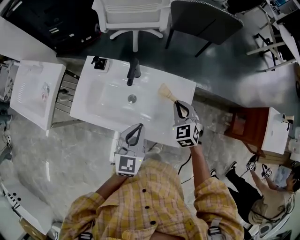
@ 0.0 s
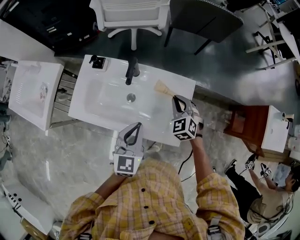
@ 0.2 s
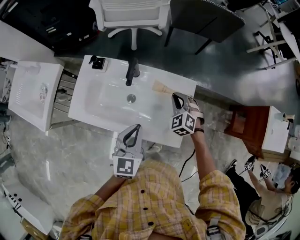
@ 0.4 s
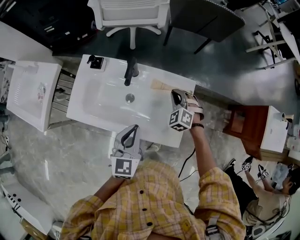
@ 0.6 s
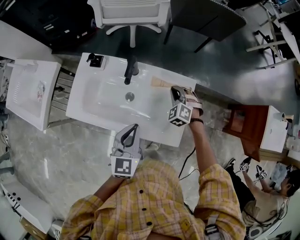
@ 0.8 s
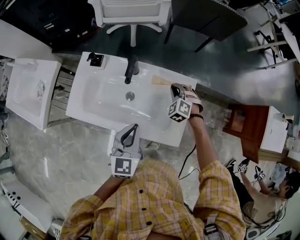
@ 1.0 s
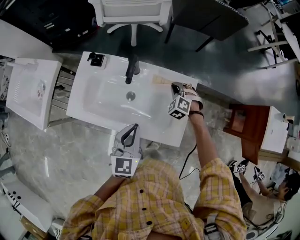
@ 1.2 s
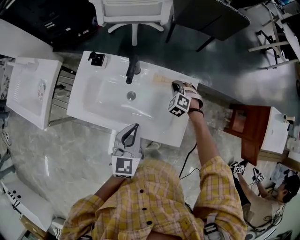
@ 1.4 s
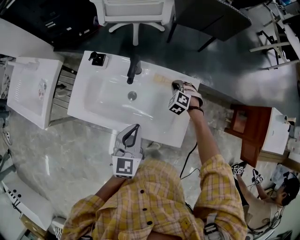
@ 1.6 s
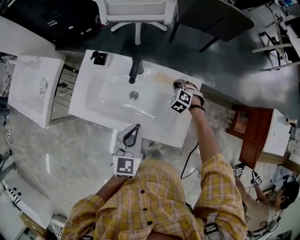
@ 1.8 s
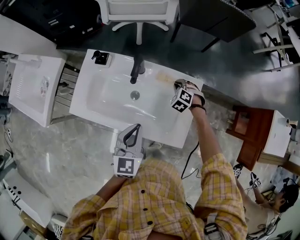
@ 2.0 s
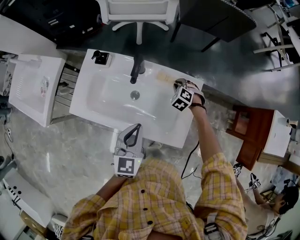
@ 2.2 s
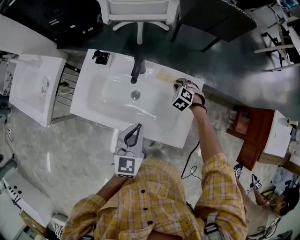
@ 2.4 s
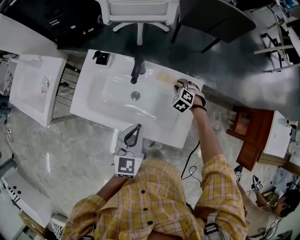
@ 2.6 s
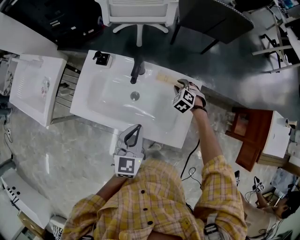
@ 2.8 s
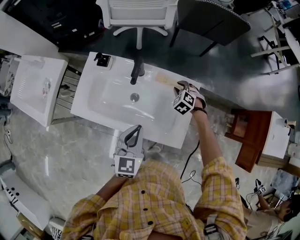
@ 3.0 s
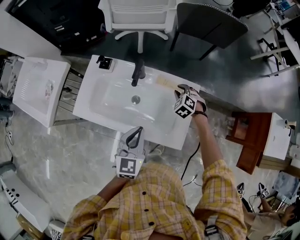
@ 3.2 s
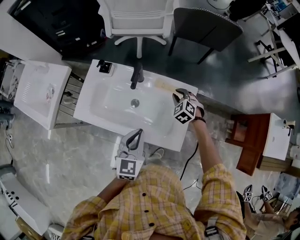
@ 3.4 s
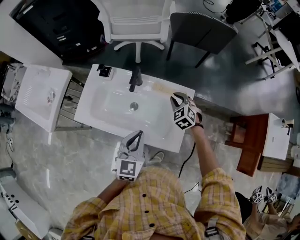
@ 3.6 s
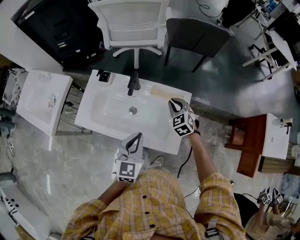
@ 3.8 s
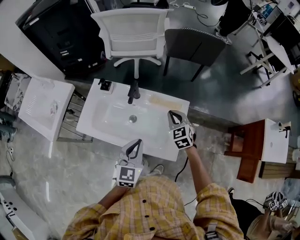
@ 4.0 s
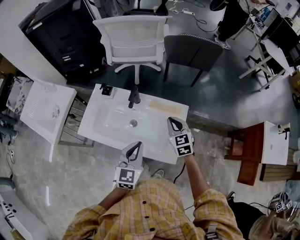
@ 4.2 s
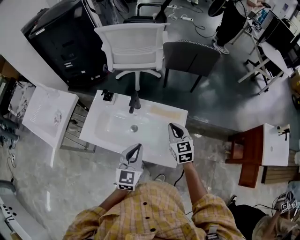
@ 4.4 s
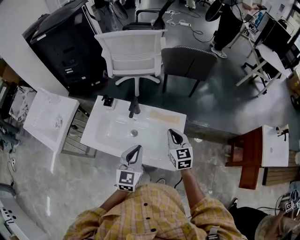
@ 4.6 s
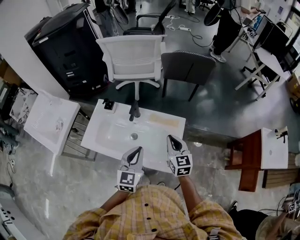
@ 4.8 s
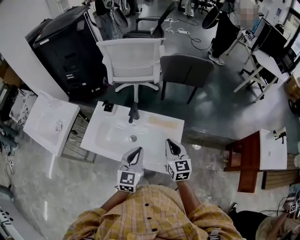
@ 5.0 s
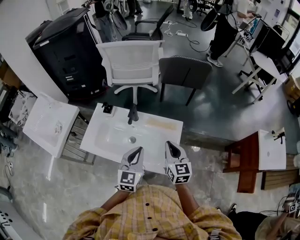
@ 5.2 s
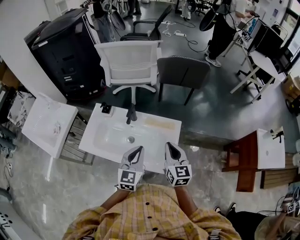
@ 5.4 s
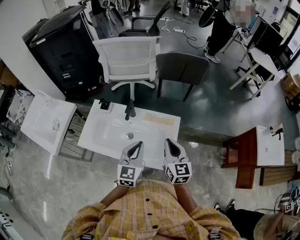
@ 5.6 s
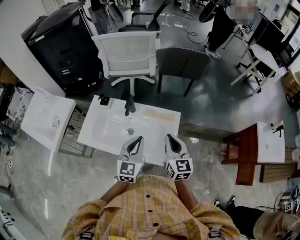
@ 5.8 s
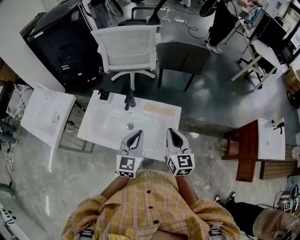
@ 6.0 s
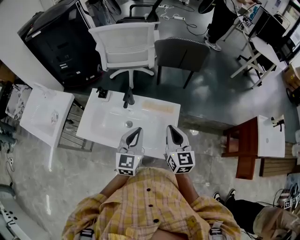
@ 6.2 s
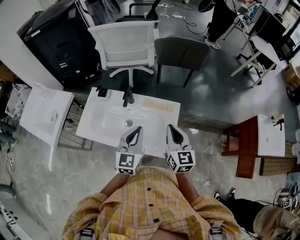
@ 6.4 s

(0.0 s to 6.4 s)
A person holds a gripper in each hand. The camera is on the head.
0.0 s - 1.6 s: The right gripper shifts some 20 cm downward and forward, and swivels roughly 40 degrees.
1.6 s - 3.2 s: The grippers make only small movements.
3.2 s - 4.8 s: The left gripper goes approximately 5 cm upward. The right gripper moves upward and backward, about 25 cm, tilts its fingers some 40 degrees upward, and closes its fingers.
4.8 s - 6.4 s: The right gripper shifts about 5 cm upward.

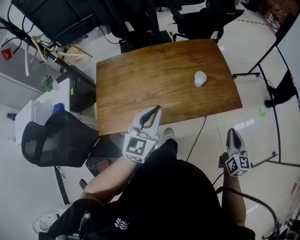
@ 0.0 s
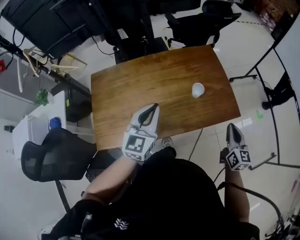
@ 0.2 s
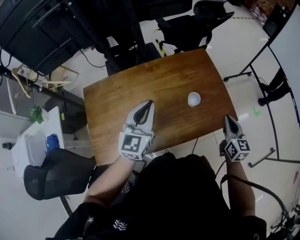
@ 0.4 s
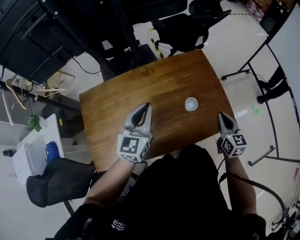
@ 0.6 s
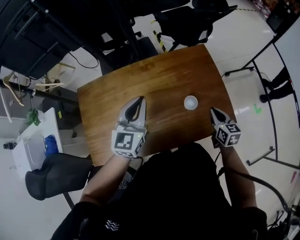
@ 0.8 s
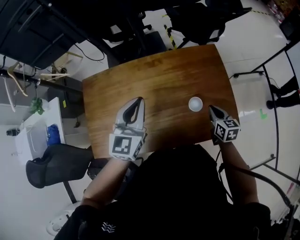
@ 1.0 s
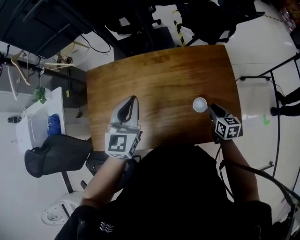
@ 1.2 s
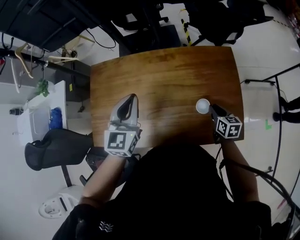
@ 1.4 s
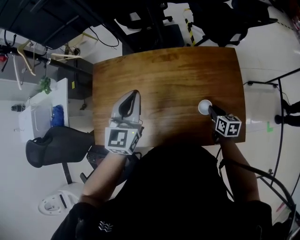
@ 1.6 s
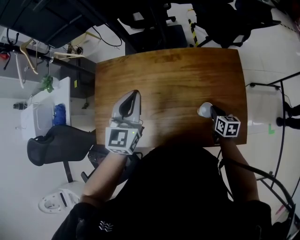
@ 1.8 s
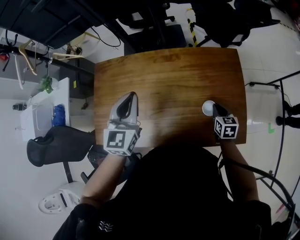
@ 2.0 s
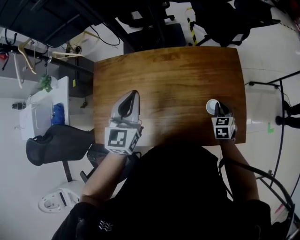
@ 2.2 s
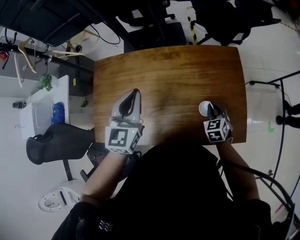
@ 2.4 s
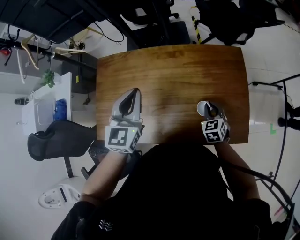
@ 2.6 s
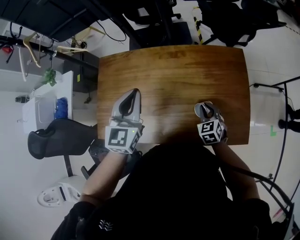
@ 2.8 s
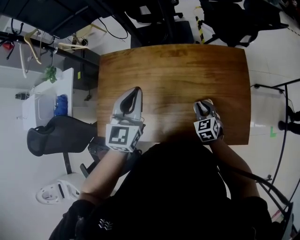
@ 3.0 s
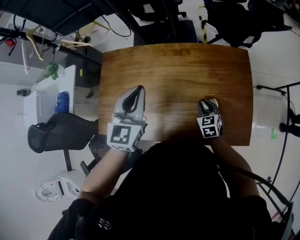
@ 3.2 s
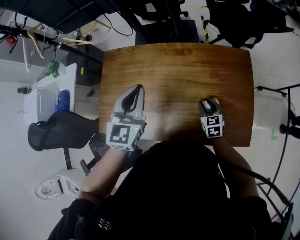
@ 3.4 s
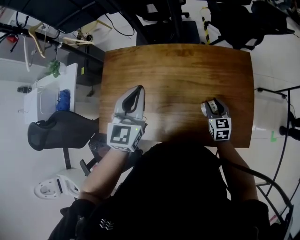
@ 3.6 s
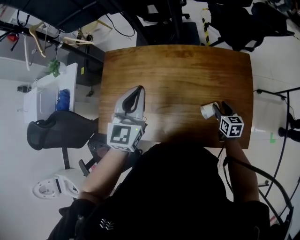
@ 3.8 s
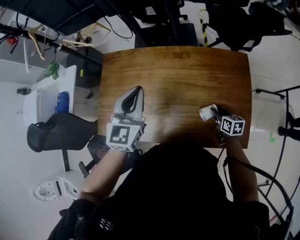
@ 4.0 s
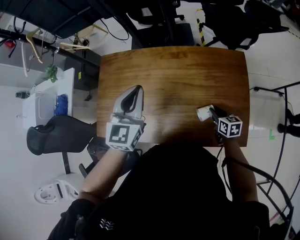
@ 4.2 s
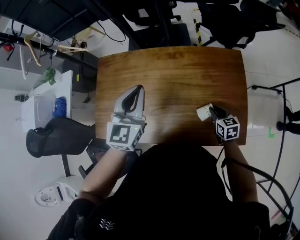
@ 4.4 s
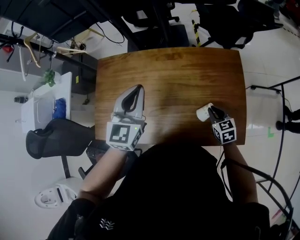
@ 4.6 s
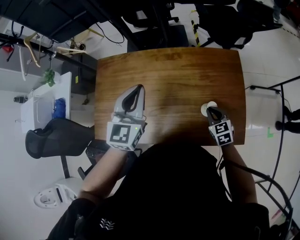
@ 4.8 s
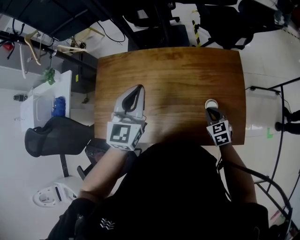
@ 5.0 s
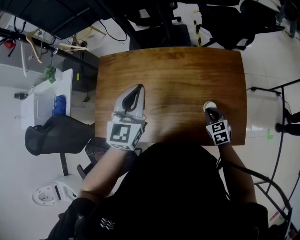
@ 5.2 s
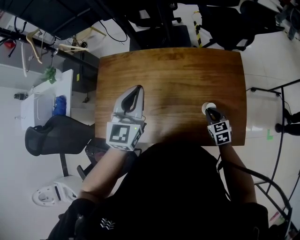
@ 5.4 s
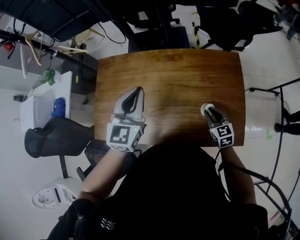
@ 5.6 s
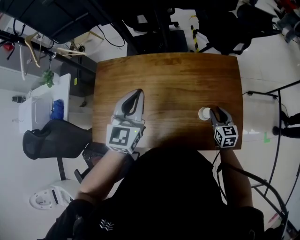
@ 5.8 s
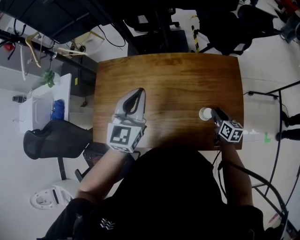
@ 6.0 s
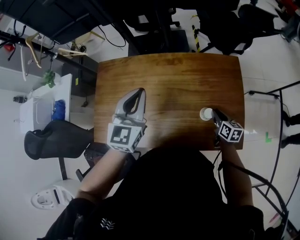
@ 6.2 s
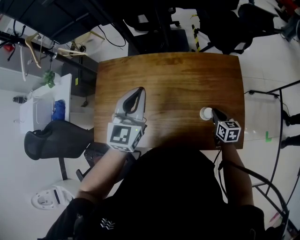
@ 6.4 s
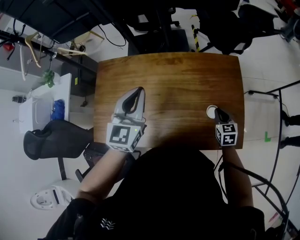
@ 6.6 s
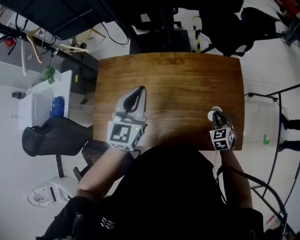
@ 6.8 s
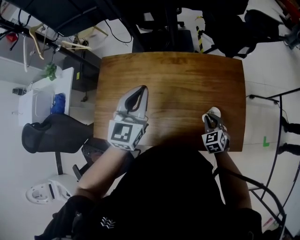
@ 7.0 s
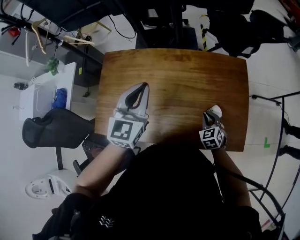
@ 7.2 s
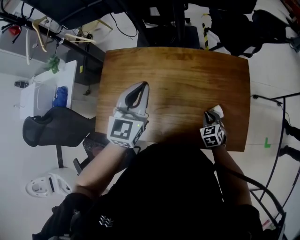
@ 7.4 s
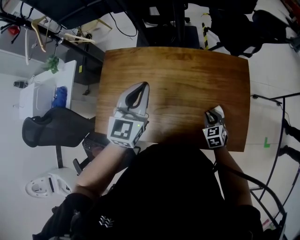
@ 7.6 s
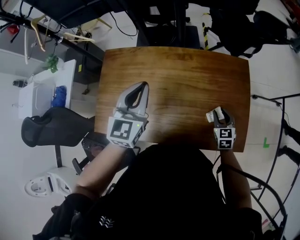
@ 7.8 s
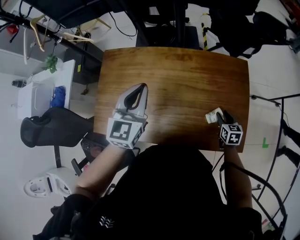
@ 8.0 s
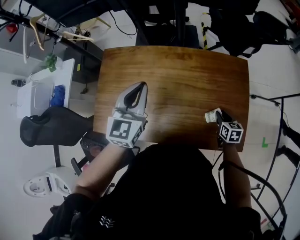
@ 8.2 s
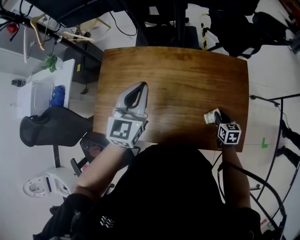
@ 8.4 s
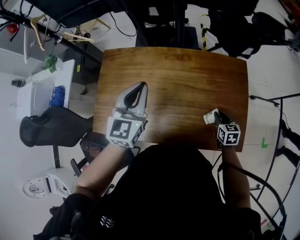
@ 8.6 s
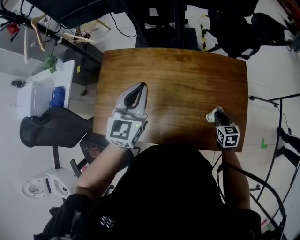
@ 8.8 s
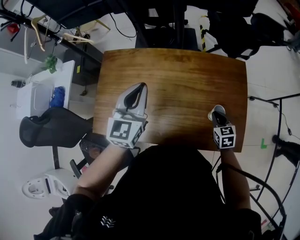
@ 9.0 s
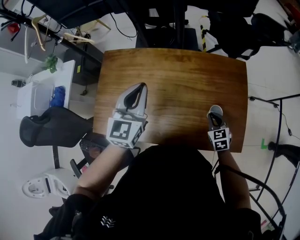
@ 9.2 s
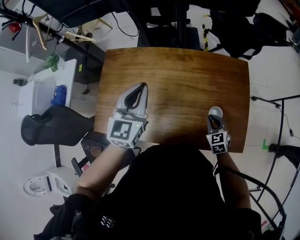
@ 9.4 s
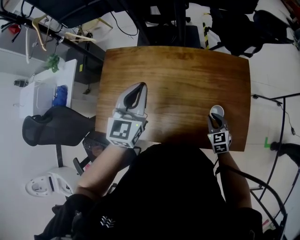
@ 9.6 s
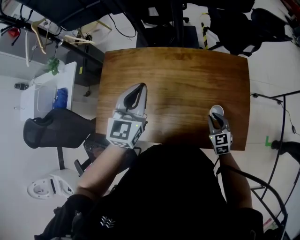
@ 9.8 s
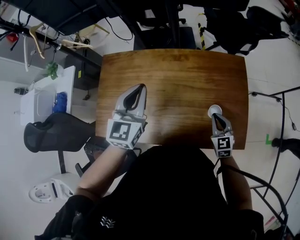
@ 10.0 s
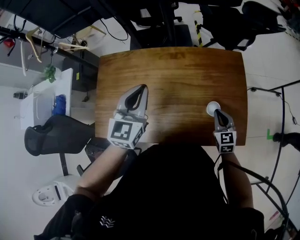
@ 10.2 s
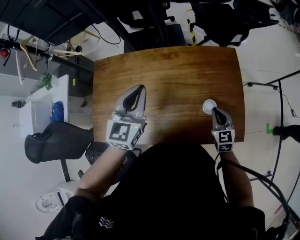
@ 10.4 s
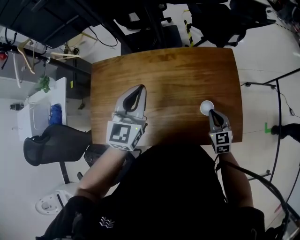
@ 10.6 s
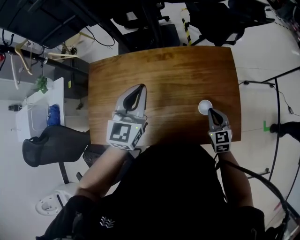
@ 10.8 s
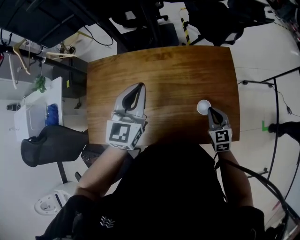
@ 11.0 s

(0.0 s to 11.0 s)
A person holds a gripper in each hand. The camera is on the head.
0.0 s - 1.6 s: The right gripper changes place by approximately 35 cm, and turns by some 40 degrees, while the left gripper ends up roughly 20 cm from where it was, and turns by about 20 degrees.
1.6 s - 3.2 s: The right gripper is displaced to the left by about 10 cm, and turns by roughly 30 degrees.
3.2 s - 4.8 s: The right gripper goes about 5 cm to the right, and opens, then closes again.
4.8 s - 6.2 s: The right gripper shifts approximately 5 cm to the right, and rotates about 40 degrees.
6.2 s - 7.8 s: The right gripper reaches roughly 10 cm to the left, then returns, and rotates approximately 40 degrees.
7.8 s - 9.4 s: The right gripper changes place by approximately 5 cm, and closes.
9.4 s - 11.0 s: The right gripper is displaced upward by about 5 cm, while the left gripper shifts approximately 5 cm to the right.

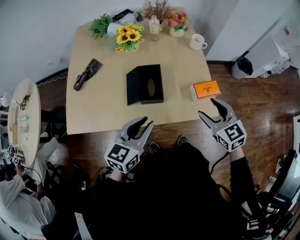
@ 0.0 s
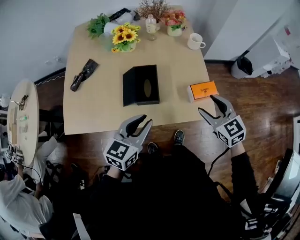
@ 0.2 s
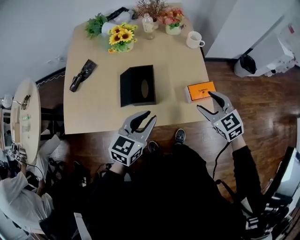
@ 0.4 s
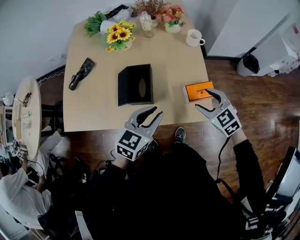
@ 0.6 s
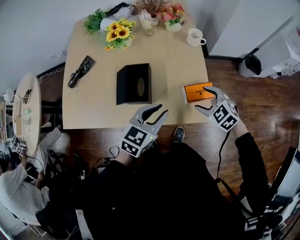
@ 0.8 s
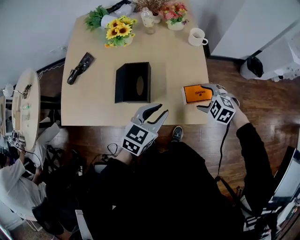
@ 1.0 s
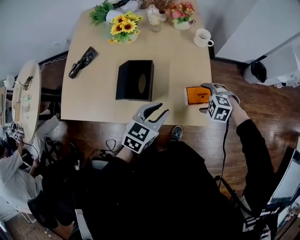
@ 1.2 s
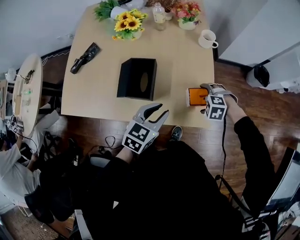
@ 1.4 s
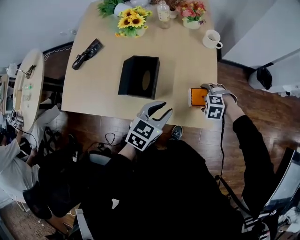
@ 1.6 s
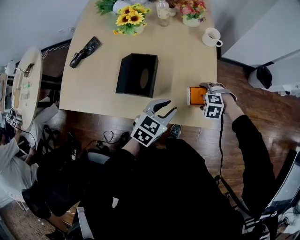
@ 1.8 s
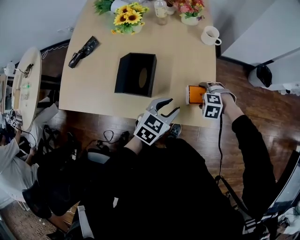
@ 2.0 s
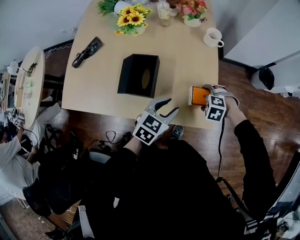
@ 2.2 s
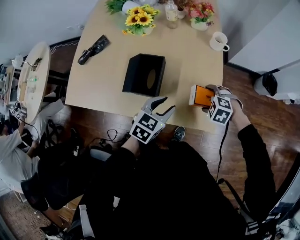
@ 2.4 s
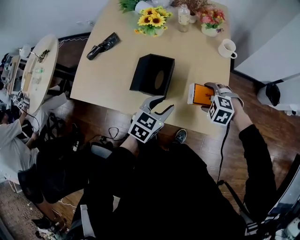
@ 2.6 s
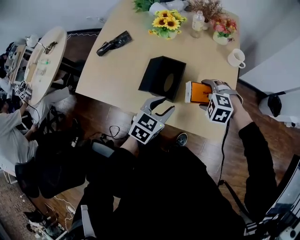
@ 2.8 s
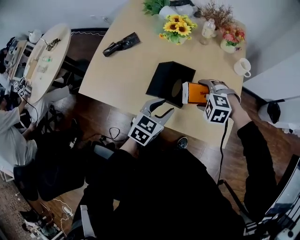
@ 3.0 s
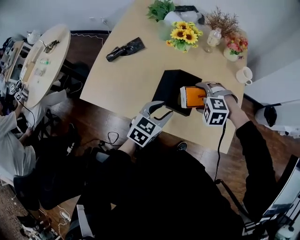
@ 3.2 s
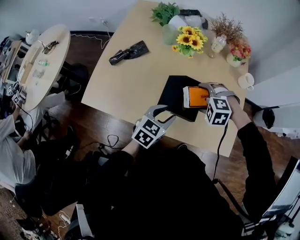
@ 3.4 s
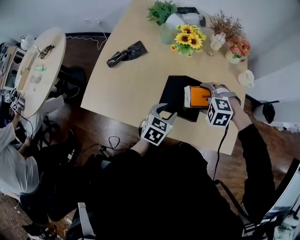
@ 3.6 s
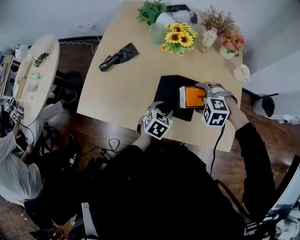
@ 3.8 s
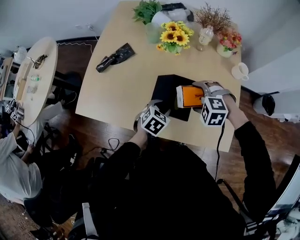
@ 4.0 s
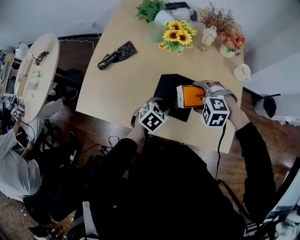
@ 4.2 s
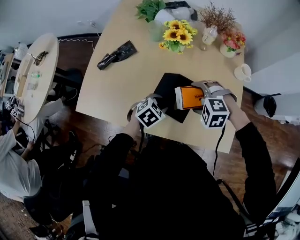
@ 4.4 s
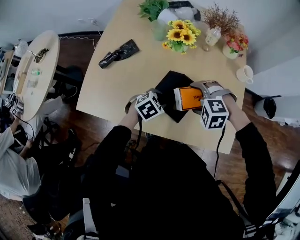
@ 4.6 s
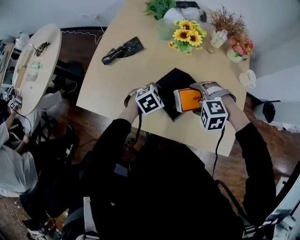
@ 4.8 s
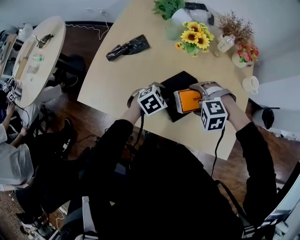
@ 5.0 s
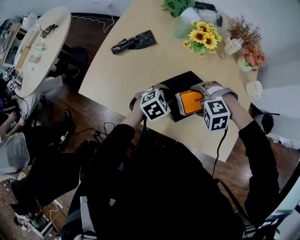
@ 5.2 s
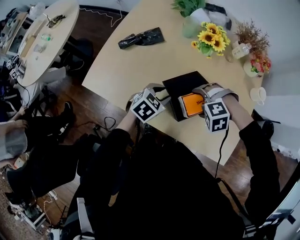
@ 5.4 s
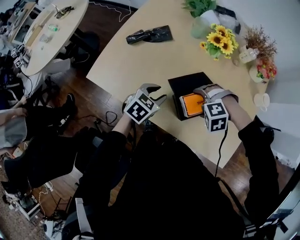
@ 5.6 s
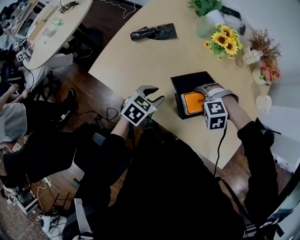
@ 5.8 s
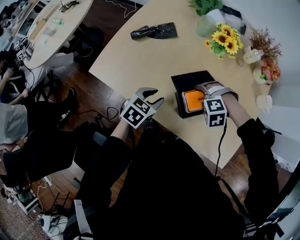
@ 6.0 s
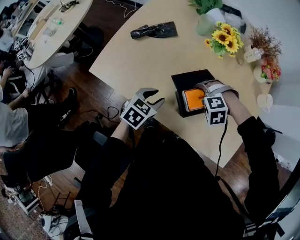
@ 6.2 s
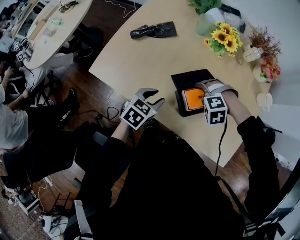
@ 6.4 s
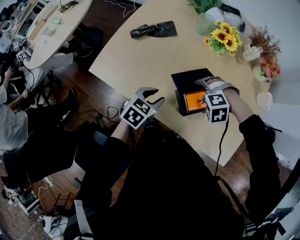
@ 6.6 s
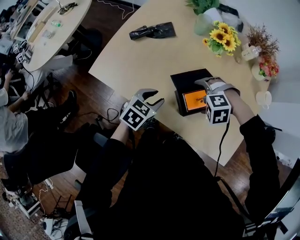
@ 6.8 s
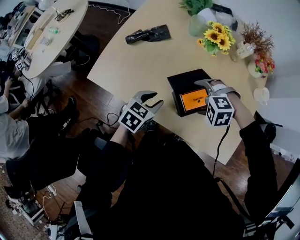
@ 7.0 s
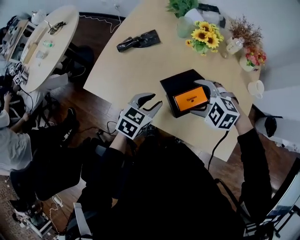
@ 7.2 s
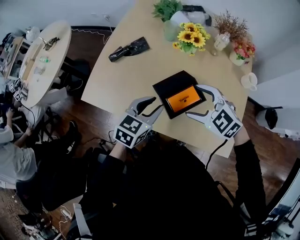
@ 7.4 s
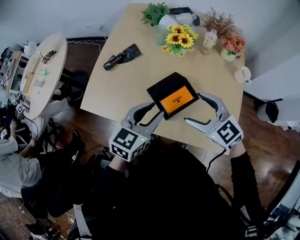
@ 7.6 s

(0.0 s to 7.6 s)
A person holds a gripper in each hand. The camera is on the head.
0.0 s - 1.6 s: The left gripper ends up some 20 cm from where it was. Meanwhile the right gripper is displaced downward by approximately 25 cm, points its fingers some 50 degrees further downward, and opens up.
1.6 s - 3.0 s: The right gripper moves approximately 25 cm; the left gripper ends up roughly 15 cm from where it was.
3.0 s - 4.6 s: The left gripper shifts about 15 cm forward, downward and to the left, and changes its angle by roughly 30 degrees. The right gripper is displaced to the left by about 10 cm.
4.6 s - 6.0 s: The left gripper moves about 15 cm, and rotates approximately 40 degrees. Meanwhile the right gripper moves downward, some 5 cm, and rotates some 30 degrees.
6.0 s - 7.6 s: The two grippers go about 20 cm upward. The left gripper changes its angle by some 20 degrees. Meanwhile the right gripper tips its fingers upward by approximately 60 degrees.
